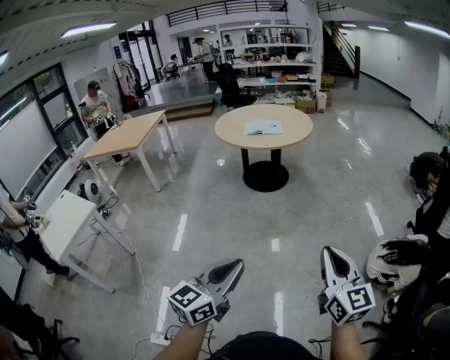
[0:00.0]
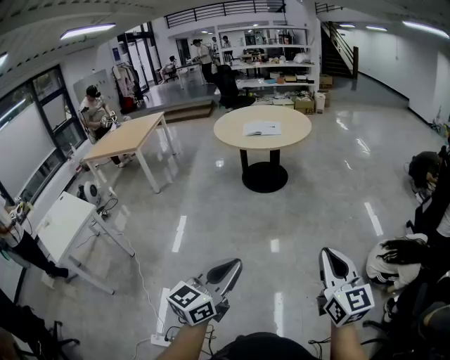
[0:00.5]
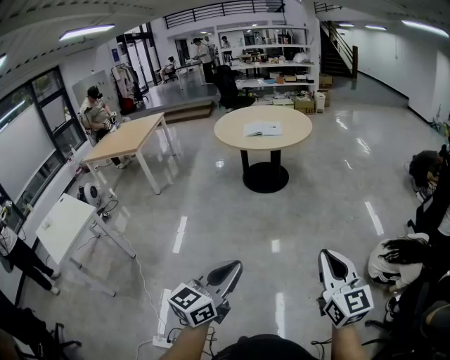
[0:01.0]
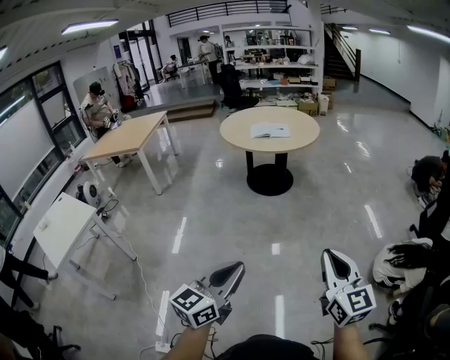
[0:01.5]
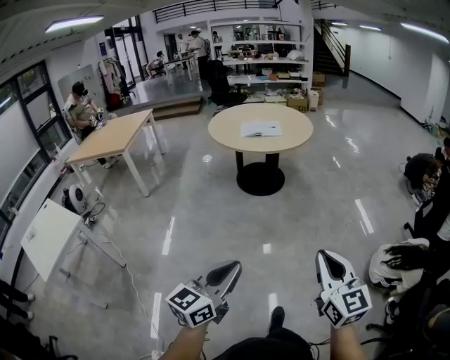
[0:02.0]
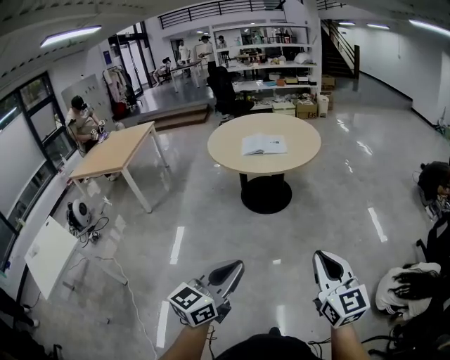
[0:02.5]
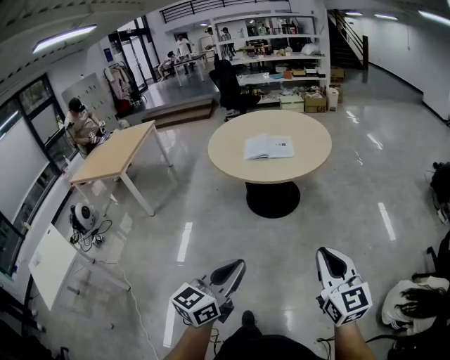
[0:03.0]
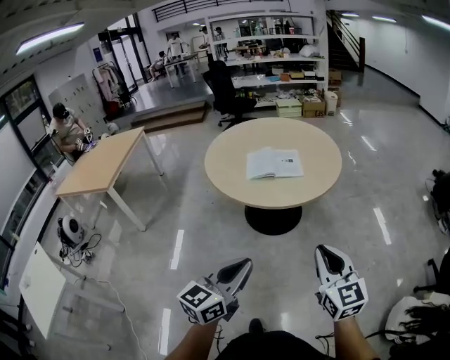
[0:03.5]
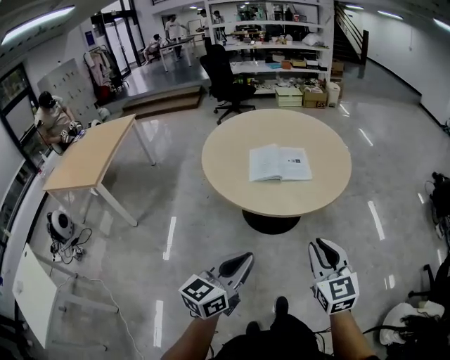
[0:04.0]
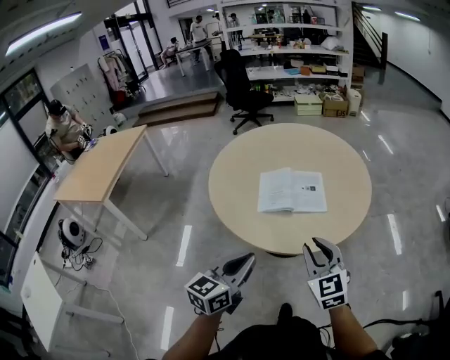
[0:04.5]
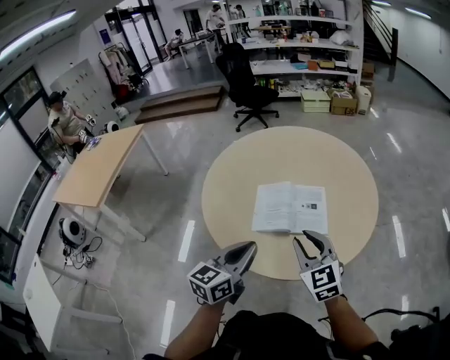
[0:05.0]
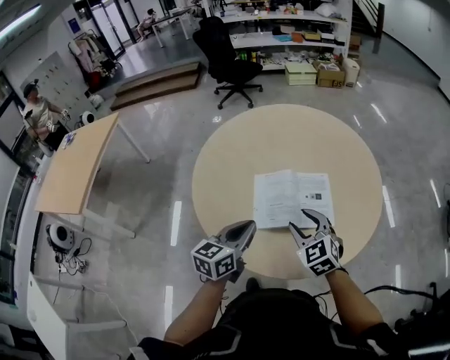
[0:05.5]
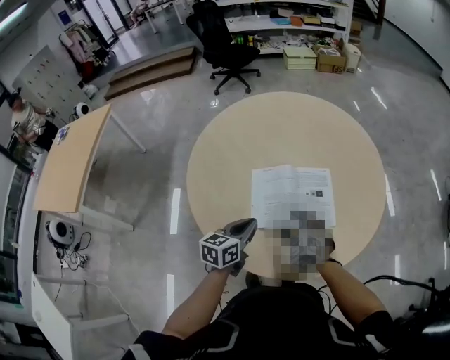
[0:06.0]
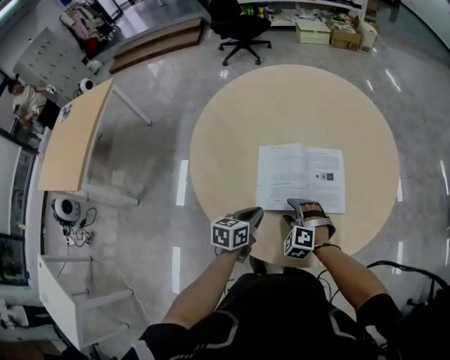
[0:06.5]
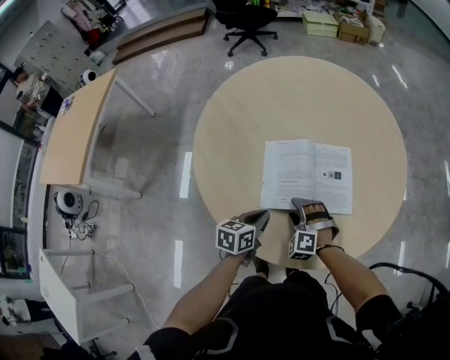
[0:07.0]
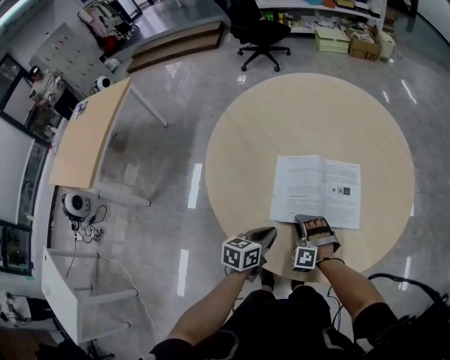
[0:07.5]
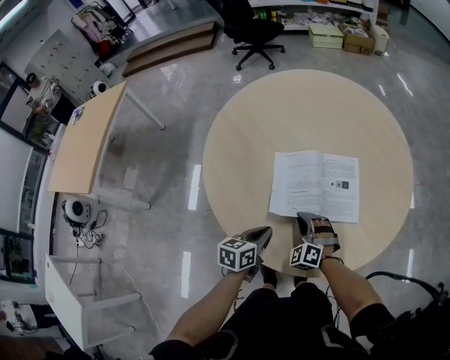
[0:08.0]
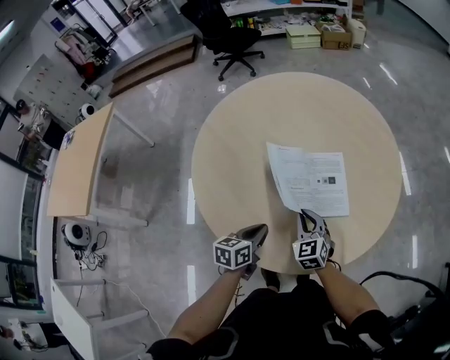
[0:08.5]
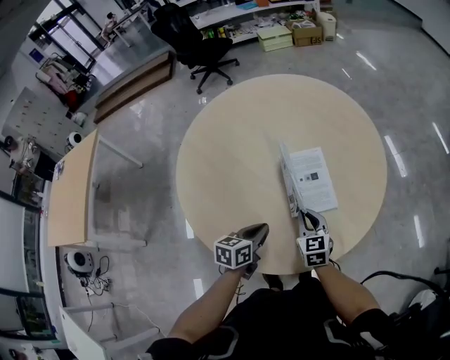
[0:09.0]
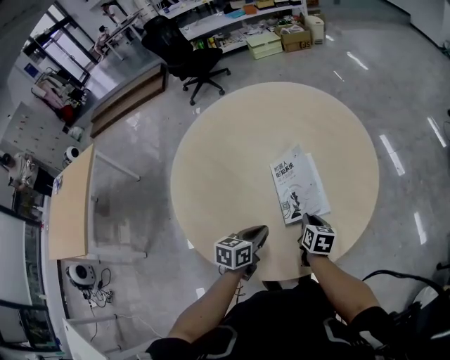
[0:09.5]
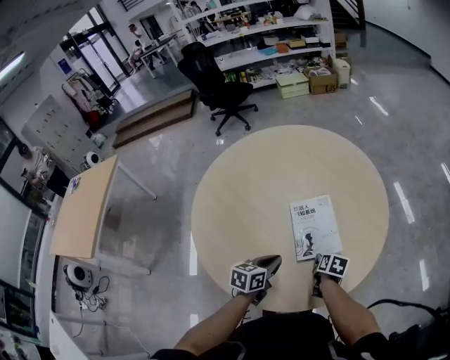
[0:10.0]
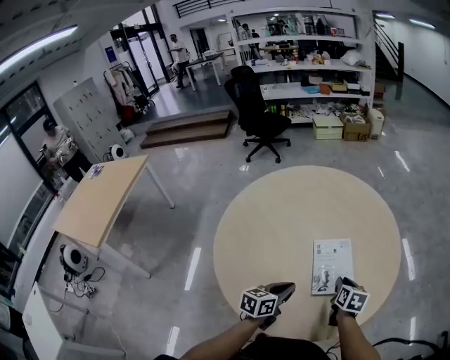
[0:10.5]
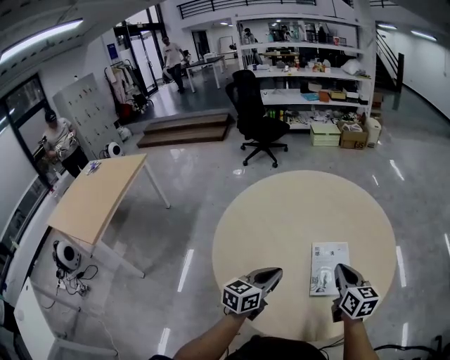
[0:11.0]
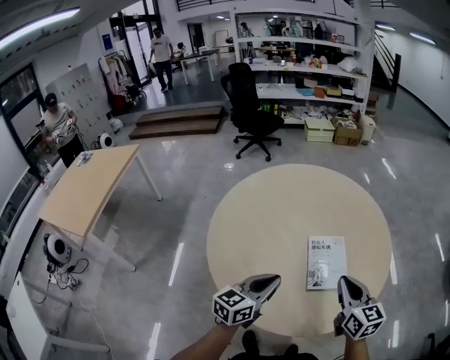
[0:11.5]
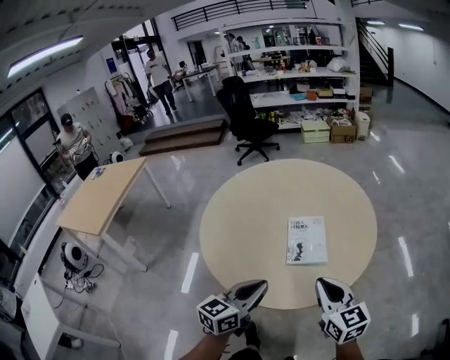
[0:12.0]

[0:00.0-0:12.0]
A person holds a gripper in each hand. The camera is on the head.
0:00.0 to 0:02.0: Both grippers travel together to the left and forward, about 15 cm.
0:02.0 to 0:04.0: Both grippers are carried forward, about 60 cm.
0:04.0 to 0:06.0: The pair of grippers is taken forward, approximately 50 cm. The left gripper rotates approximately 20 degrees. The right gripper moves downward, approximately 20 cm, angles its fingers downward, by about 30 degrees, and opens.
0:06.0 to 0:08.0: Both grippers move downward, about 10 cm. The right gripper rotates about 20 degrees, and closes up.
0:08.0 to 0:10.0: The right gripper travels to the right by approximately 20 cm, rolls clockwise, seen from behind, by about 100 degrees, and opens up; the left gripper moves forward and to the right, roughly 10 cm.
0:10.0 to 0:12.0: The grippers both shift upward and backward by about 30 cm. The right gripper angles its fingers upward, by some 40 degrees, and closes up; the left gripper turns by about 30 degrees.

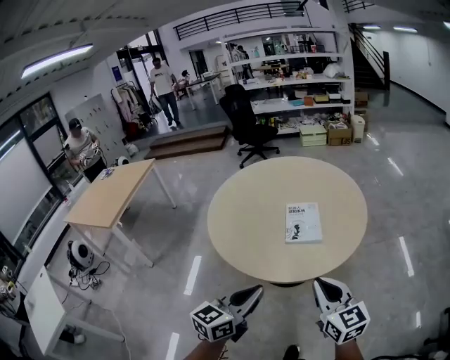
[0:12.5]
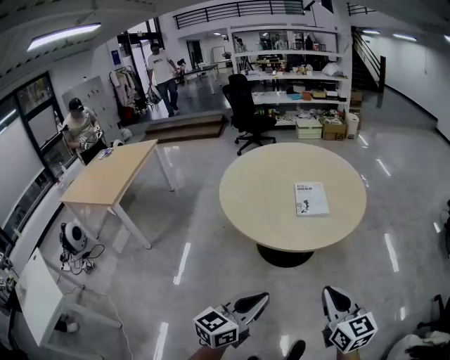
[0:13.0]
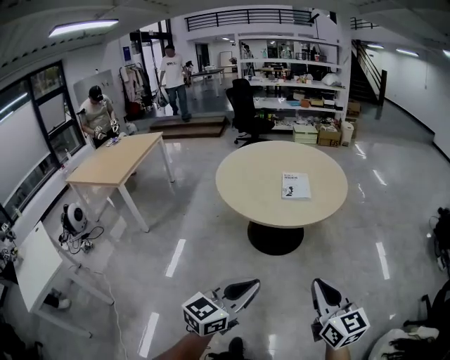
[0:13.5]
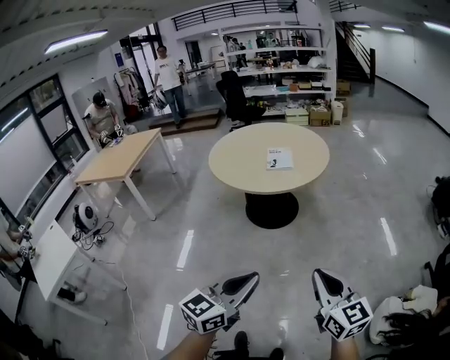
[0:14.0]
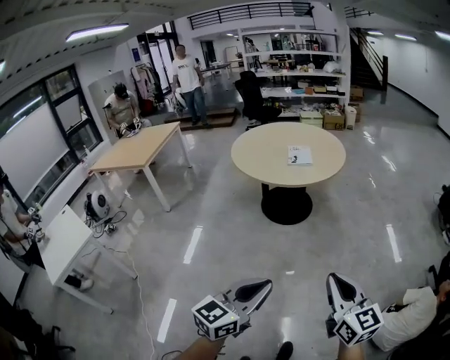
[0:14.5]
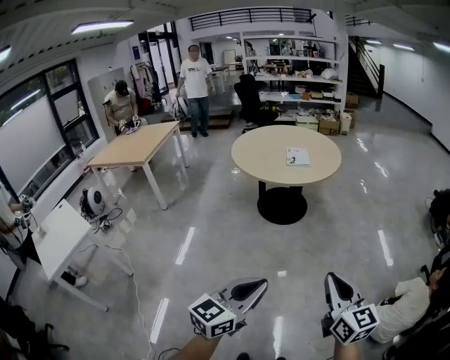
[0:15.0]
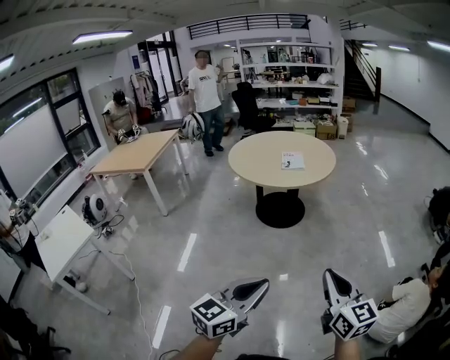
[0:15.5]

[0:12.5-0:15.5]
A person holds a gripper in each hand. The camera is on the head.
0:12.5 to 0:14.0: The two grippers travel together, backward, approximately 50 cm.
0:14.0 to 0:15.5: Both grippers travel together backward, approximately 15 cm.

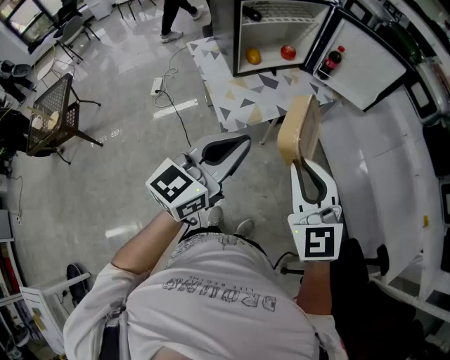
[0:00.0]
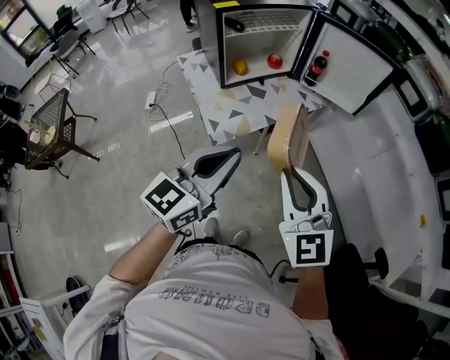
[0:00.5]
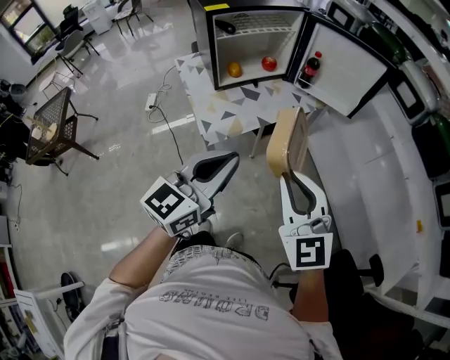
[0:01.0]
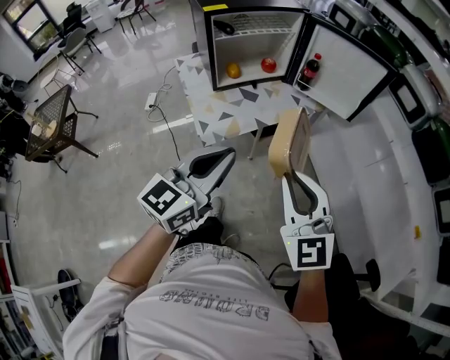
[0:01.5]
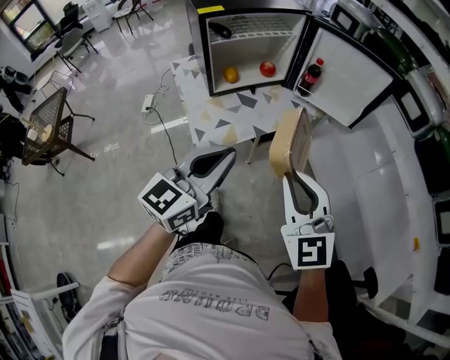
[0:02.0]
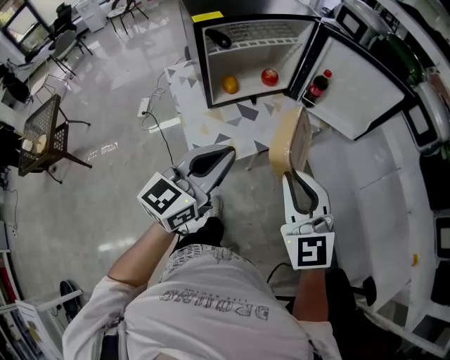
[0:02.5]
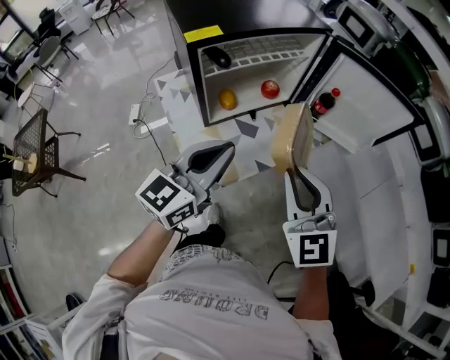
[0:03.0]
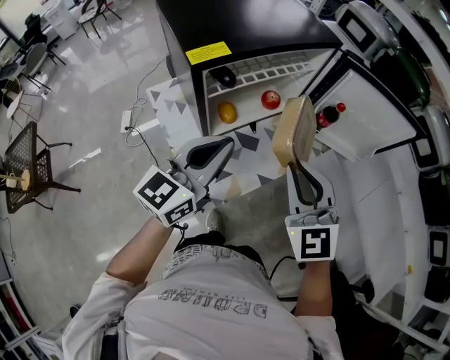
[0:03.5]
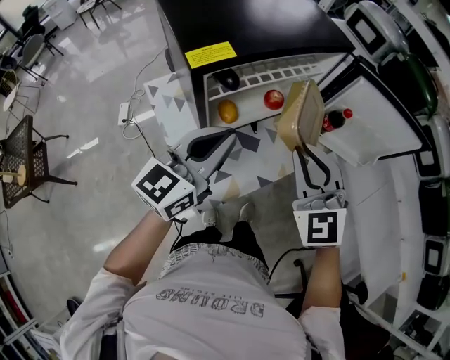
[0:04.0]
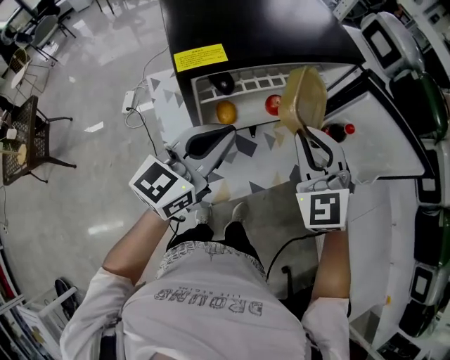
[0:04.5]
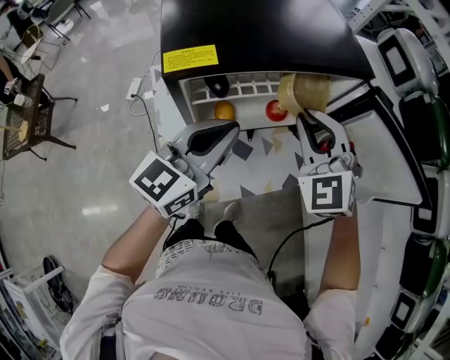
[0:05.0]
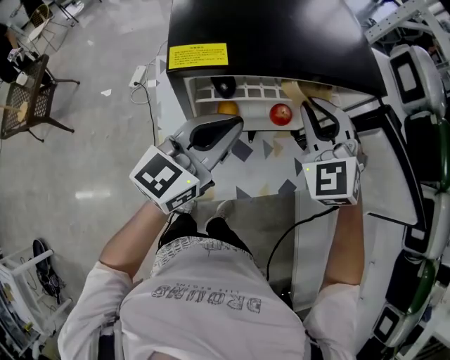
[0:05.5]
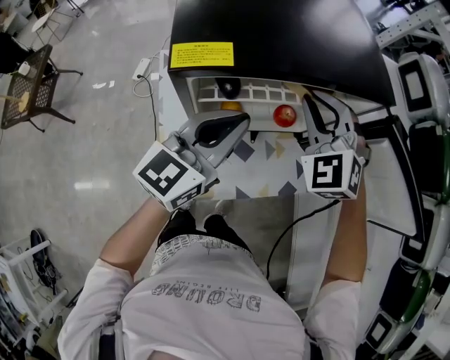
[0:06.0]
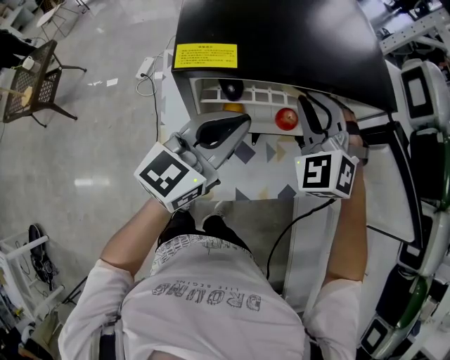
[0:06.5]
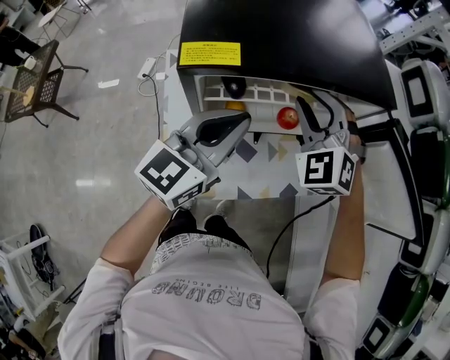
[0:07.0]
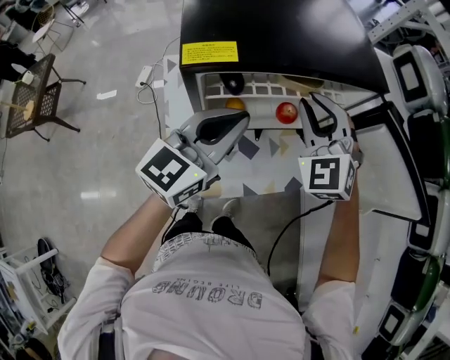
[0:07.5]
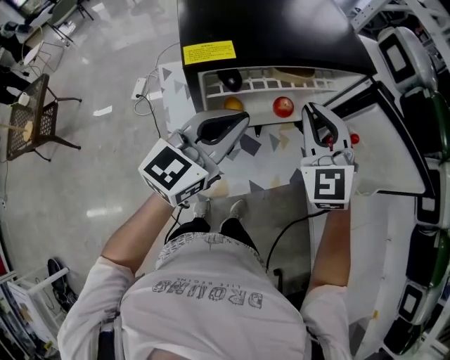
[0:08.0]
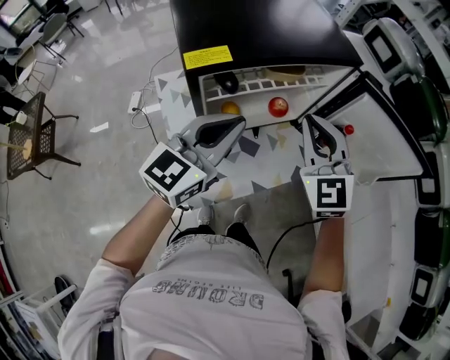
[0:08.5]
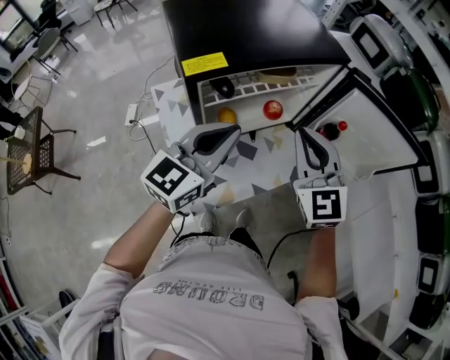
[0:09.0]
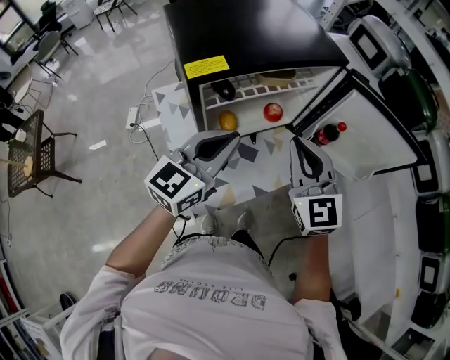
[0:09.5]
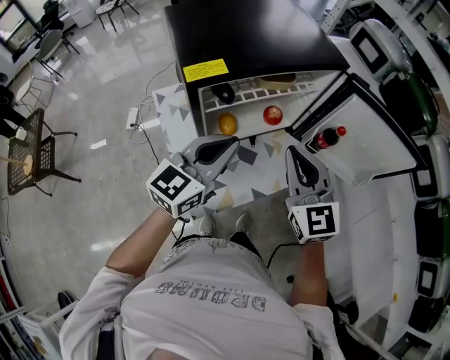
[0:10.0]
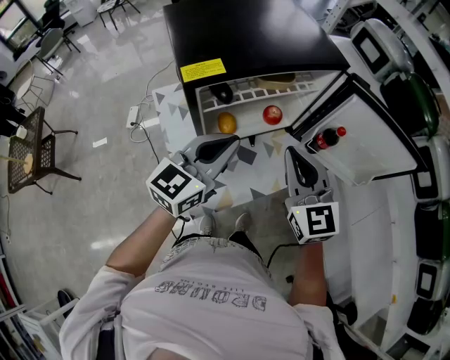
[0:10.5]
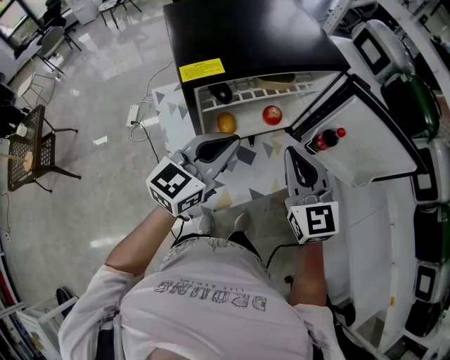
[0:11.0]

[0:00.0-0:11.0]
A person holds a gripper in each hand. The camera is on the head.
0:00.0 to 0:02.0: Both grippers travel together to the right and forward, roughly 10 cm.
0:02.0 to 0:03.5: Both grippers move forward and to the left, about 30 cm.
0:03.5 to 0:05.5: The right gripper heads forward, covering roughly 25 cm, and changes its angle by some 40 degrees. Meanwhile the left gripper is displaced forward by some 10 cm.
0:05.5 to 0:07.5: The grippers make only small movements.
0:07.5 to 0:09.0: The right gripper heads backward, covering roughly 10 cm, and turns by about 30 degrees. The left gripper shifts about 5 cm backward.
0:09.0 to 0:11.0: The grippers stay close to where they were, moving slightly.

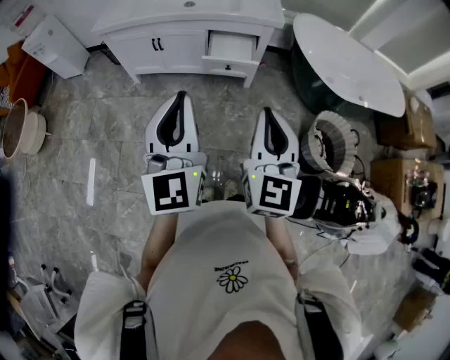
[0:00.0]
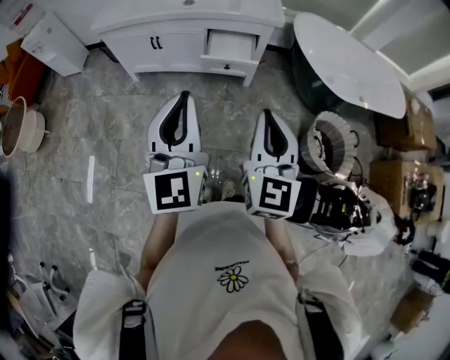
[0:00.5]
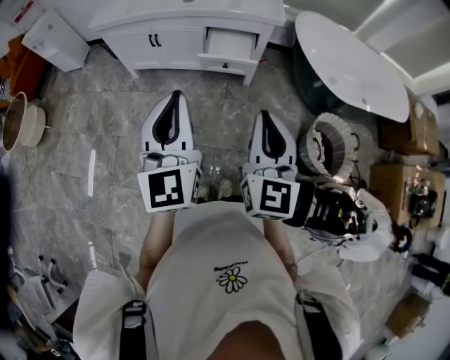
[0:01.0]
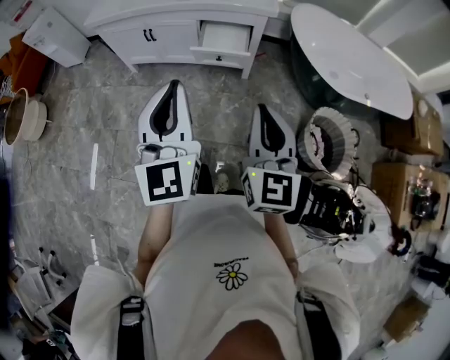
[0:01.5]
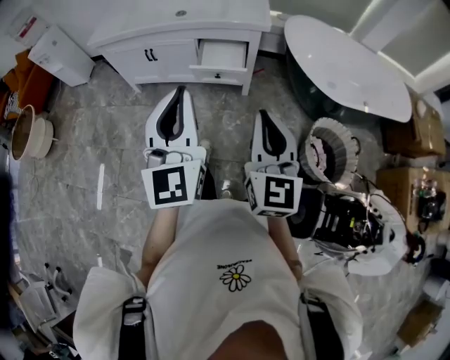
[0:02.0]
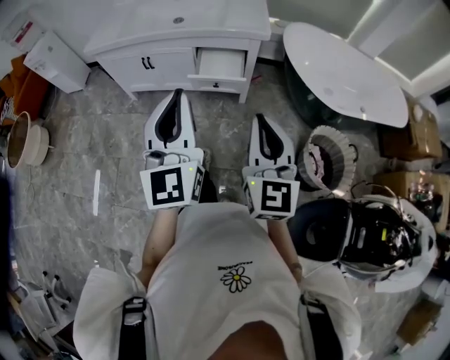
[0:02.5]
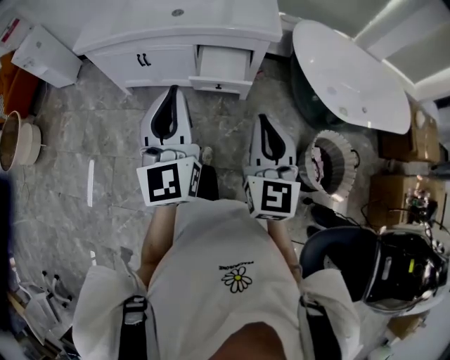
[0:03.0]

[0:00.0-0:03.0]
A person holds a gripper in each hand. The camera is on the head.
0:00.0 to 0:01.5: Both grippers travel together to the right, some 10 cm.
0:01.5 to 0:03.0: Both grippers travel together forward, about 15 cm.
